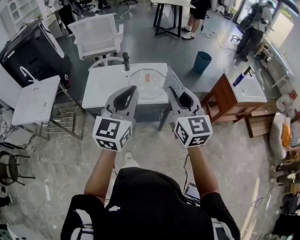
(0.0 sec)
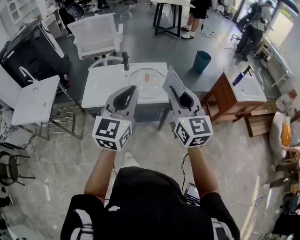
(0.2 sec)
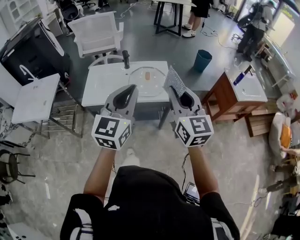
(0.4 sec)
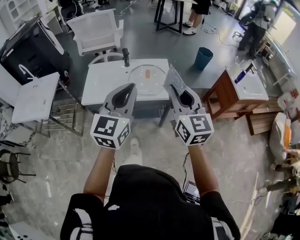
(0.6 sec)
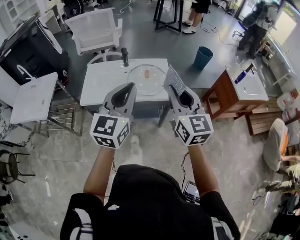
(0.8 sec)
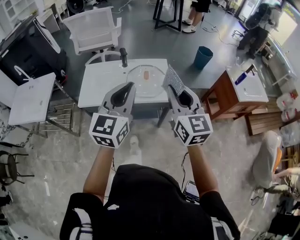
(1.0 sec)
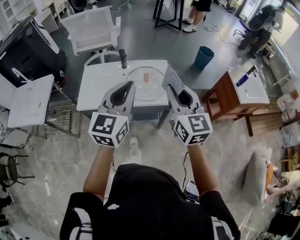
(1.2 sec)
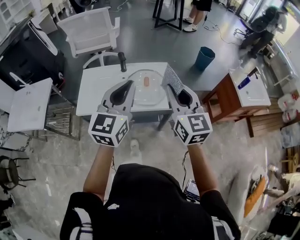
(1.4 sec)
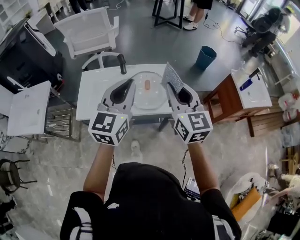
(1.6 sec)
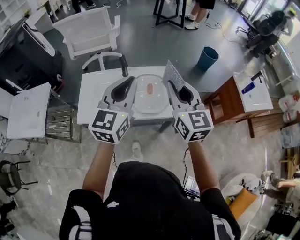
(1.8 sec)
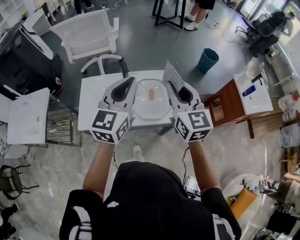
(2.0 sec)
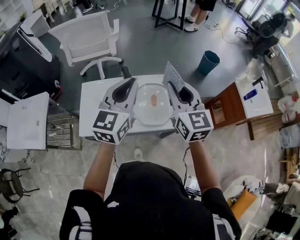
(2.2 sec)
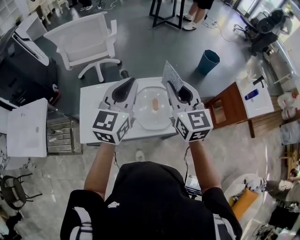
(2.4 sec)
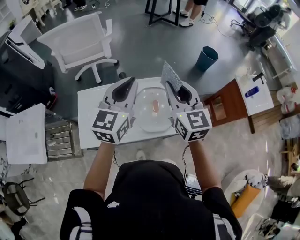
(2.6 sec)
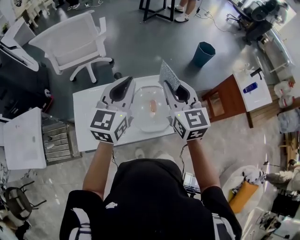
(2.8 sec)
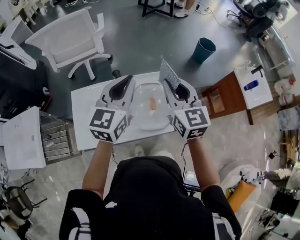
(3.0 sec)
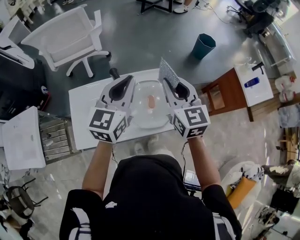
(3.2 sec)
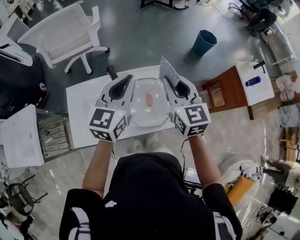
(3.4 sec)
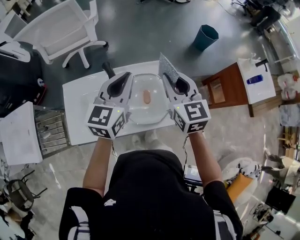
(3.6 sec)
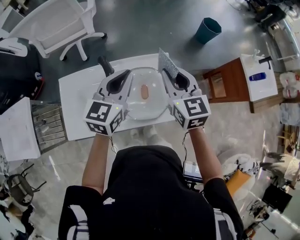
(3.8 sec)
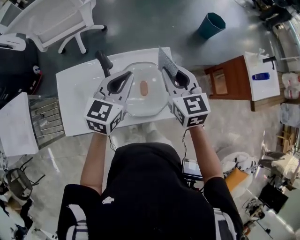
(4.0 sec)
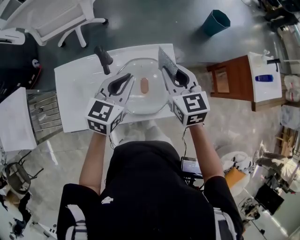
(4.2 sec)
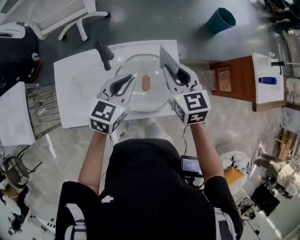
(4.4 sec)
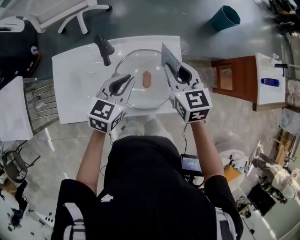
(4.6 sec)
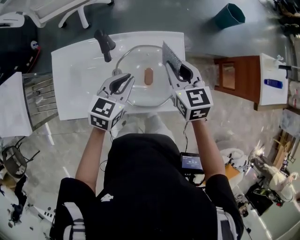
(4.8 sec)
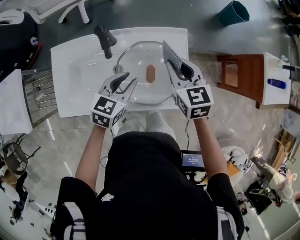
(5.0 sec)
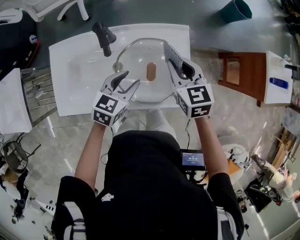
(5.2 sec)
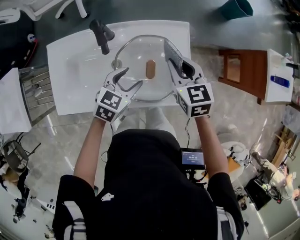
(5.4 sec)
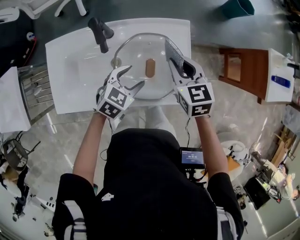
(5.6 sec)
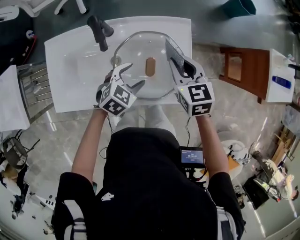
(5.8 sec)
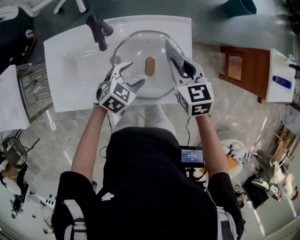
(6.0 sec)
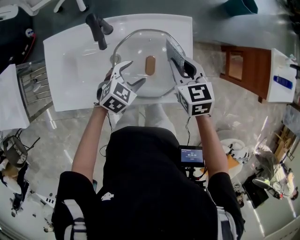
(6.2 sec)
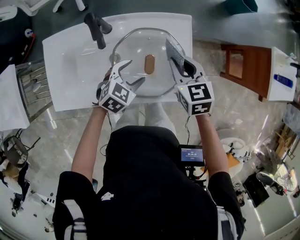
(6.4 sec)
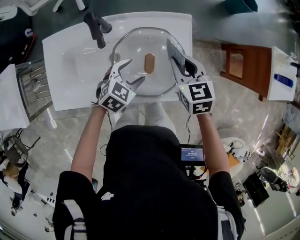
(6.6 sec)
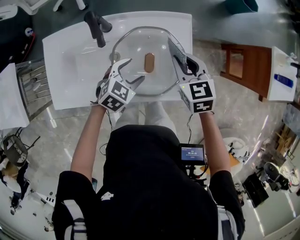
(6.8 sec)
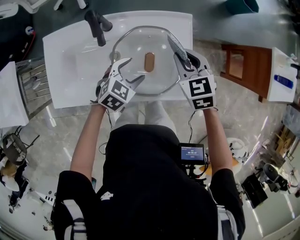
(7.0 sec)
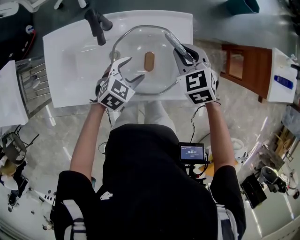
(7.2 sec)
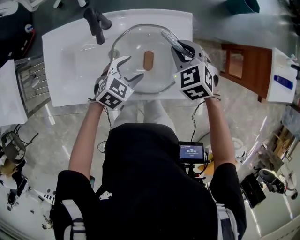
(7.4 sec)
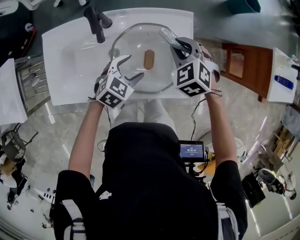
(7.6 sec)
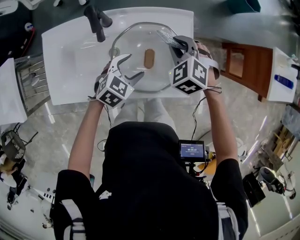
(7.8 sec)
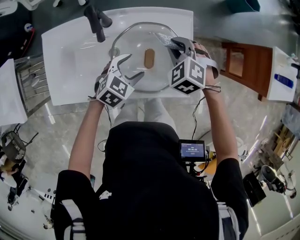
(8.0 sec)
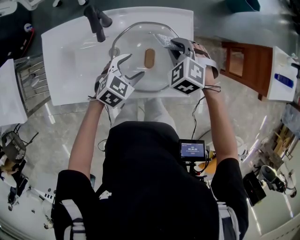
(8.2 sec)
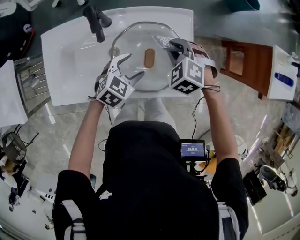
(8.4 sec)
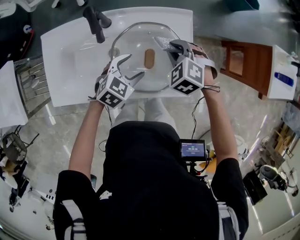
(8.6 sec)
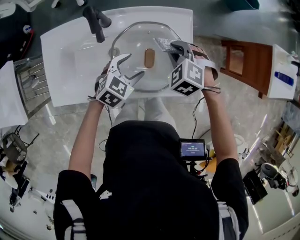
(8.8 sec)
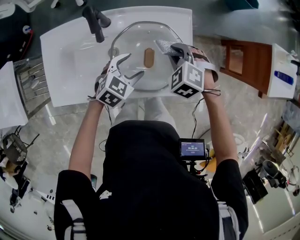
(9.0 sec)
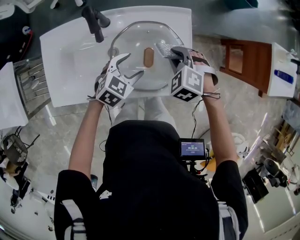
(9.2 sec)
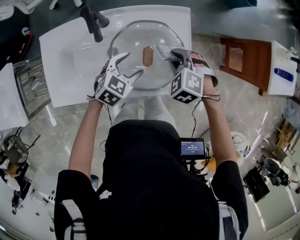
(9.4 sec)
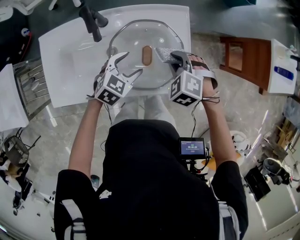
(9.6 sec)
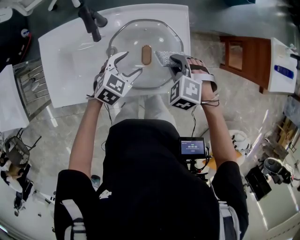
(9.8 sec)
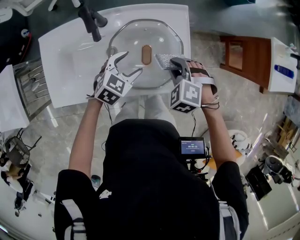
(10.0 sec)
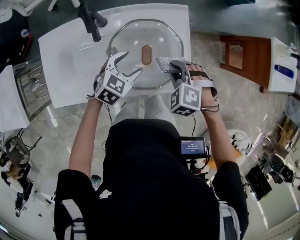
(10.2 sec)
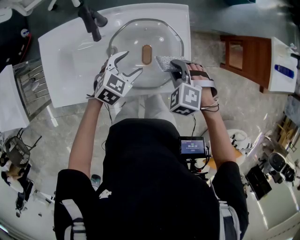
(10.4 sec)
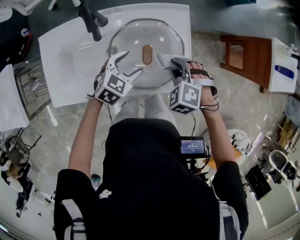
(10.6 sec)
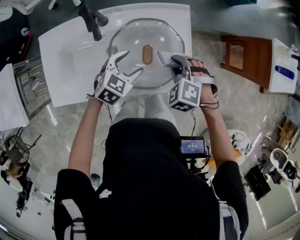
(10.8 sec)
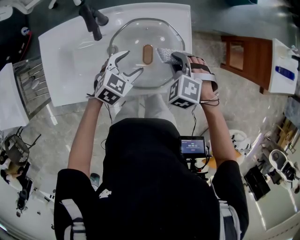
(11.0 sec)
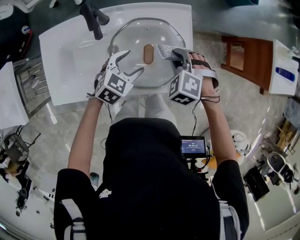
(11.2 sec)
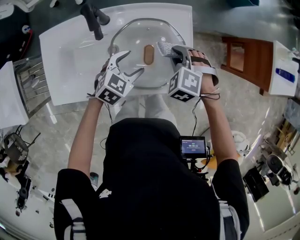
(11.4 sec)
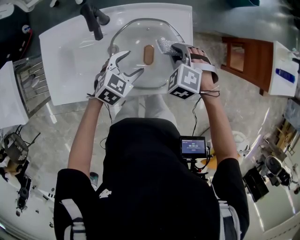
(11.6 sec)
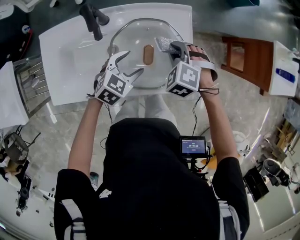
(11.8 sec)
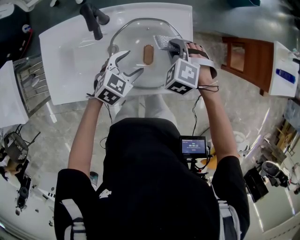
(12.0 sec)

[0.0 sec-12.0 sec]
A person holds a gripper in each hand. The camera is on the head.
0.0 sec to 1.6 sec: The two grippers go some 20 cm forward.
1.6 sec to 3.0 sec: The two grippers go about 20 cm forward.
3.0 sec to 4.4 sec: The right gripper goes approximately 20 cm downward and forward, while the left gripper shifts some 20 cm downward, and swivels approximately 20 degrees.
4.4 sec to 6.0 sec: The left gripper moves downward, approximately 20 cm, swivels about 30 degrees, and opens its fingers, while the right gripper is displaced downward by some 15 cm.
6.0 sec to 7.6 sec: The right gripper swivels approximately 40 degrees.
7.6 sec to 9.0 sec: The right gripper ends up some 5 cm from where it was.
9.0 sec to 10.4 sec: The right gripper goes some 5 cm backward.
10.4 sec to 12.0 sec: The right gripper goes some 5 cm forward.

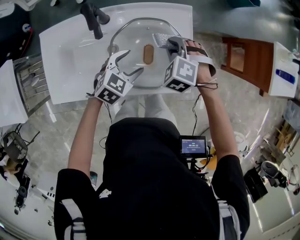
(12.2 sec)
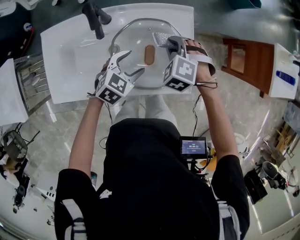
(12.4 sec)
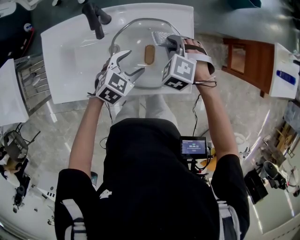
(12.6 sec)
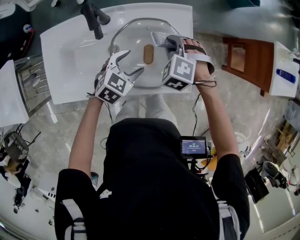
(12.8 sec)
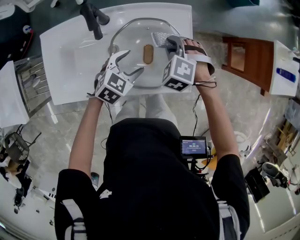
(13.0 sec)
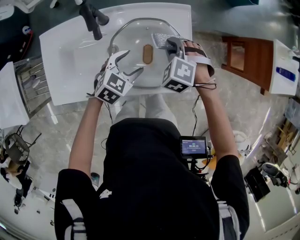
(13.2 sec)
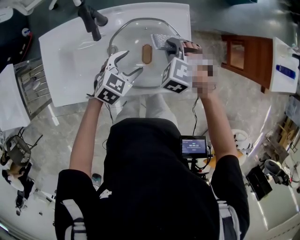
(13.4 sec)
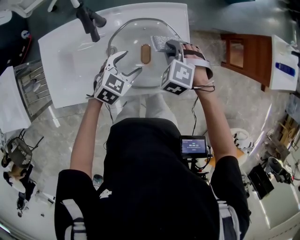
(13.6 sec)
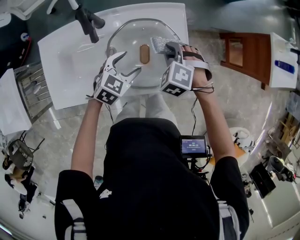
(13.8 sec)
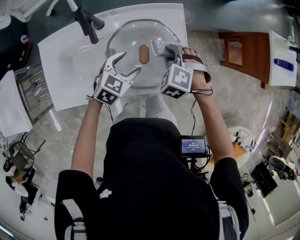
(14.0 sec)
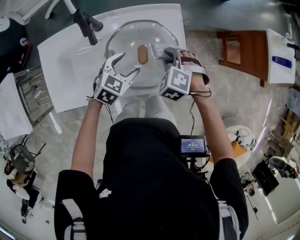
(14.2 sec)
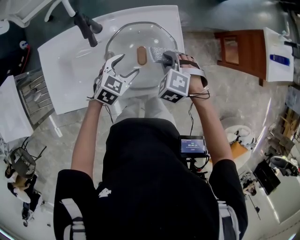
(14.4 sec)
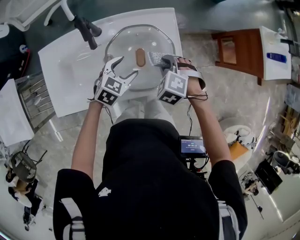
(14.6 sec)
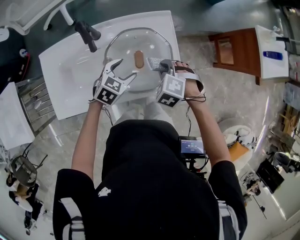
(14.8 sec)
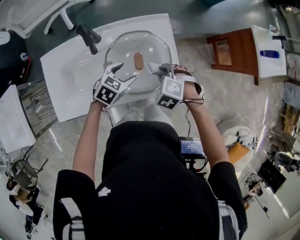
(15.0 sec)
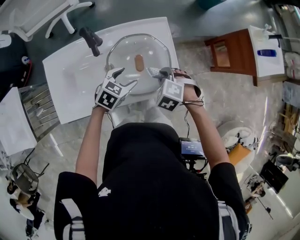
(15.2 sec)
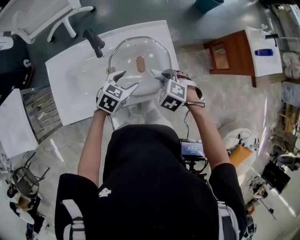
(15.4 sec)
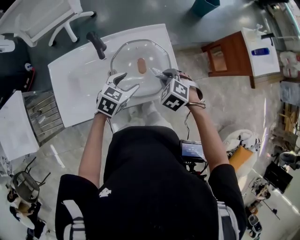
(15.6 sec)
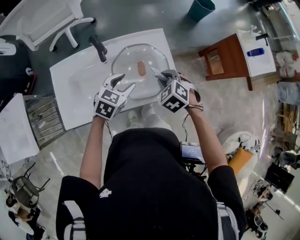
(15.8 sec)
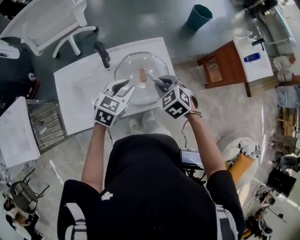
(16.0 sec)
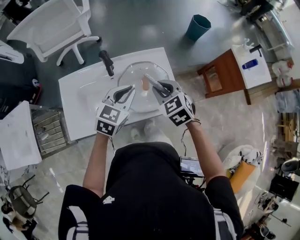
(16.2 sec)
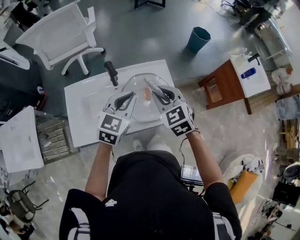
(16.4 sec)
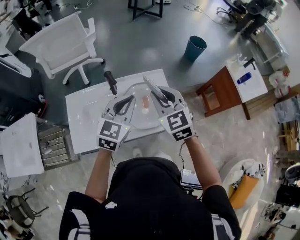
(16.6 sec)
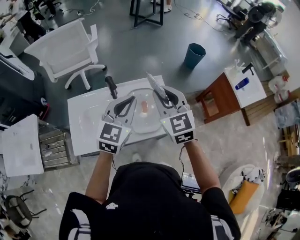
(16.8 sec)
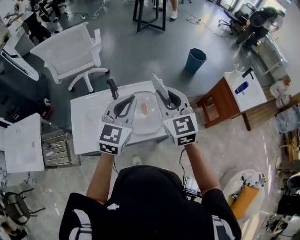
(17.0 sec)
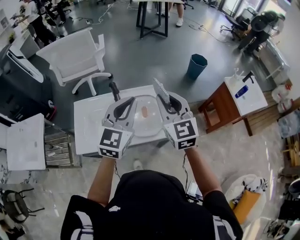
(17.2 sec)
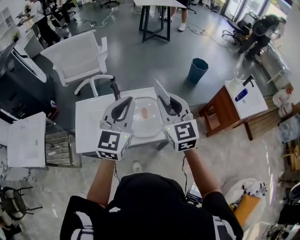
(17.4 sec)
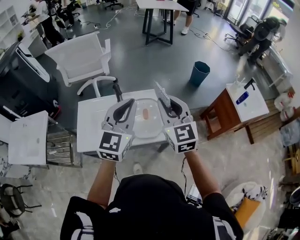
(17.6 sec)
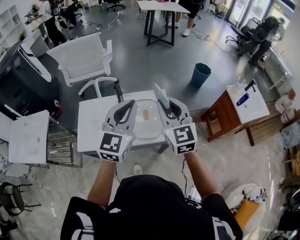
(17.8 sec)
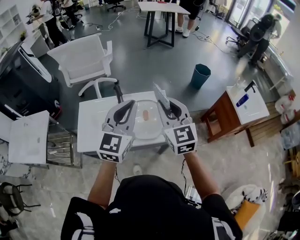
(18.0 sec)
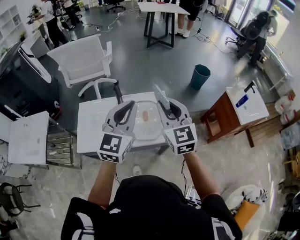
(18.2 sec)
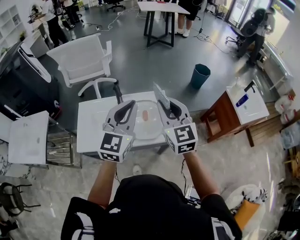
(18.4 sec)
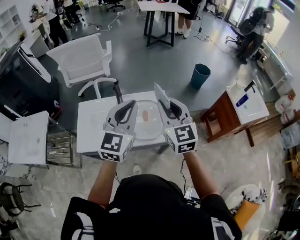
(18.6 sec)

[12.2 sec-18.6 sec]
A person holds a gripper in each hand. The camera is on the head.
12.2 sec to 13.8 sec: There are only small adjustments of the grippers.
13.8 sec to 15.4 sec: The right gripper travels backward by roughly 10 cm; the left gripper shifts by roughly 5 cm.
15.4 sec to 17.0 sec: Both grippers move upward, approximately 35 cm. The right gripper angles its fingers upward, by approximately 60 degrees. The left gripper points its fingers about 40 degrees further upward, and closes its fingers.
17.0 sec to 18.6 sec: The left gripper heads upward and backward, covering roughly 10 cm, while the right gripper moves backward, approximately 5 cm.

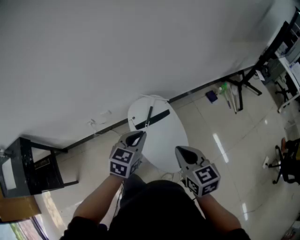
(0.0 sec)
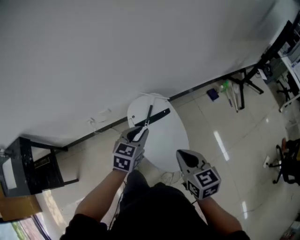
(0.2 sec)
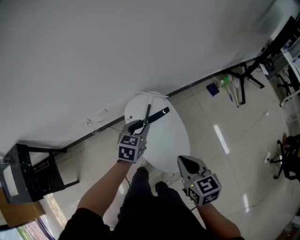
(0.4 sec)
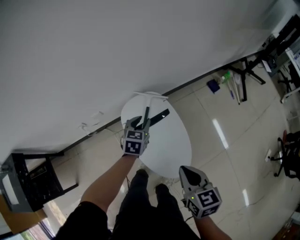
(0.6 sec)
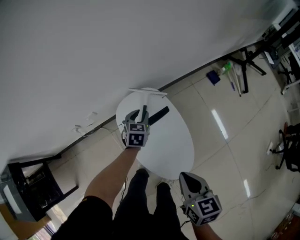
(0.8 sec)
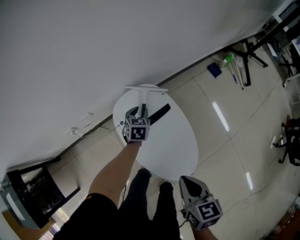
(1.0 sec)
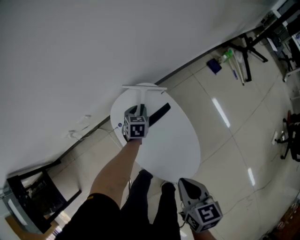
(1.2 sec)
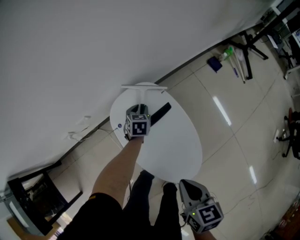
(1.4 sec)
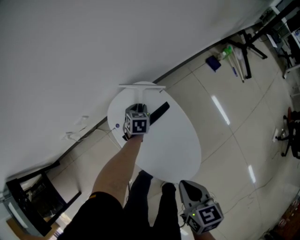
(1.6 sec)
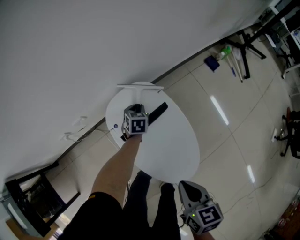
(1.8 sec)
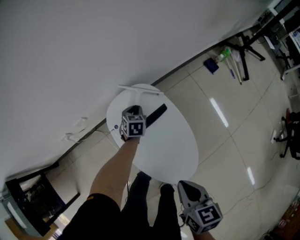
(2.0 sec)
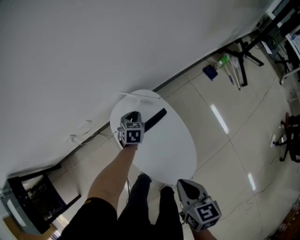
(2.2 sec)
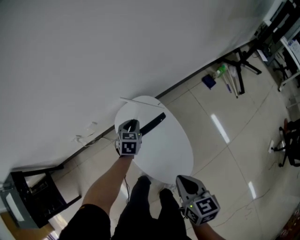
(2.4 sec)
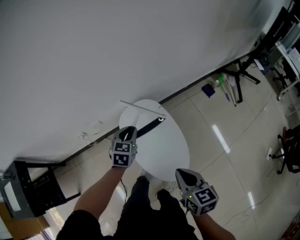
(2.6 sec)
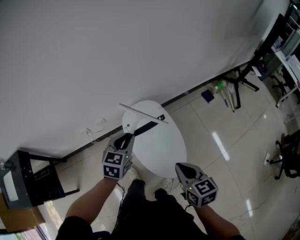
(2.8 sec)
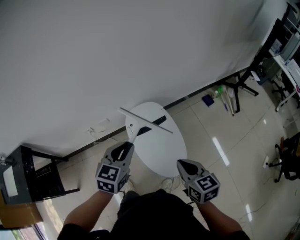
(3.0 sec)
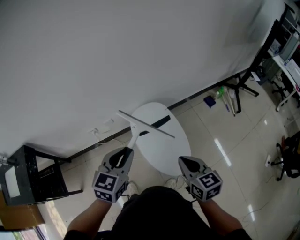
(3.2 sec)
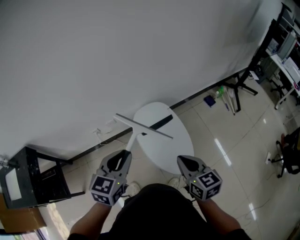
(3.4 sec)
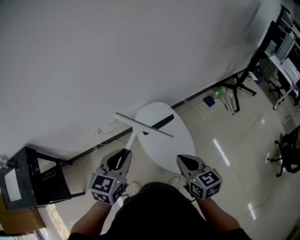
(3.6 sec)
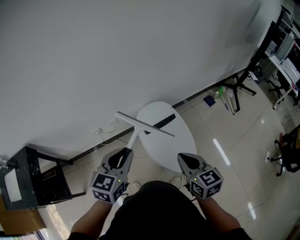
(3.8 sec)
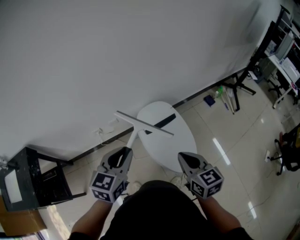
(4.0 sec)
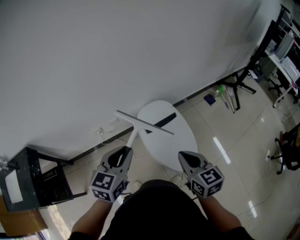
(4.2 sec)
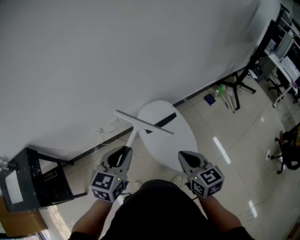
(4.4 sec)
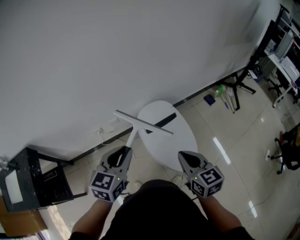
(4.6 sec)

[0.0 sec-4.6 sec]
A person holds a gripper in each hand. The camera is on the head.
0.0 sec to 1.6 sec: The left gripper travels downward and forward by approximately 50 cm, rotates about 20 degrees, and opens up; the right gripper heads downward, covering roughly 20 cm, and changes its angle by about 30 degrees.
1.6 sec to 3.0 sec: The right gripper moves upward and backward, roughly 20 cm, and changes its angle by some 30 degrees. The left gripper heads upward and backward, covering roughly 50 cm, and rotates some 30 degrees.
3.0 sec to 4.6 sec: The left gripper goes about 15 cm to the left and backward. Meanwhile the right gripper goes about 10 cm to the left.
